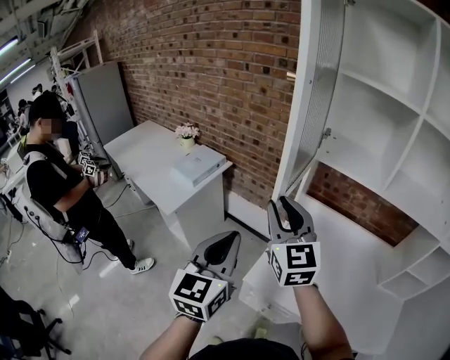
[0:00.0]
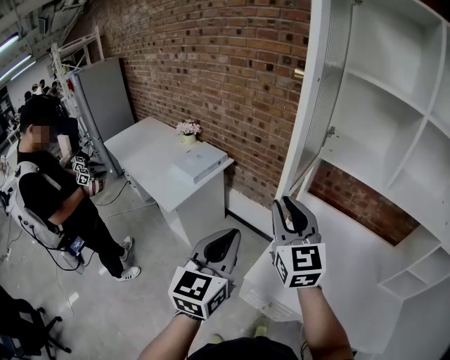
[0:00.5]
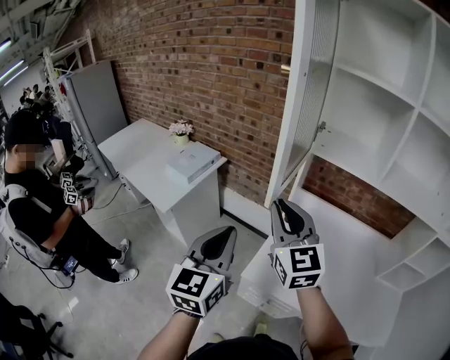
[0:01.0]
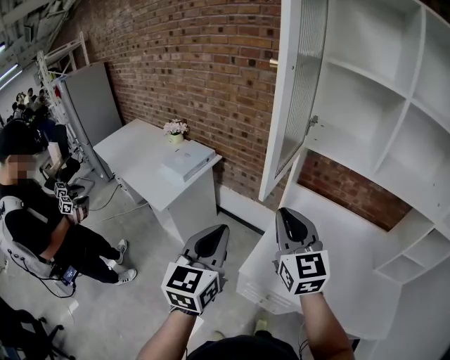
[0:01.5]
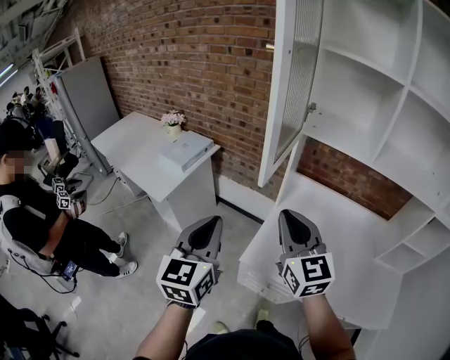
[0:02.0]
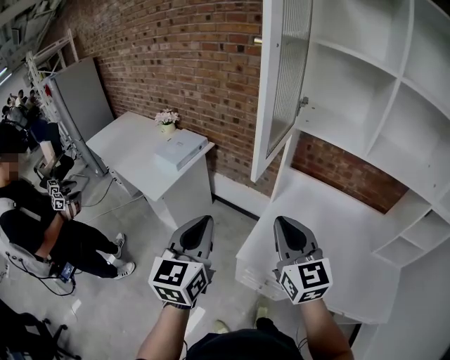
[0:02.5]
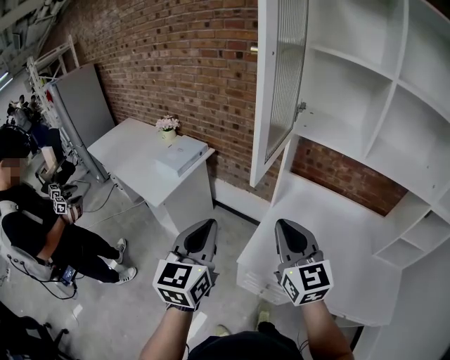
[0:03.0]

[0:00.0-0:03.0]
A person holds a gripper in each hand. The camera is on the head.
0:00.0 to 0:01.5: The right gripper moves about 5 cm.
0:01.5 to 0:03.0: The right gripper is displaced backward by about 5 cm.

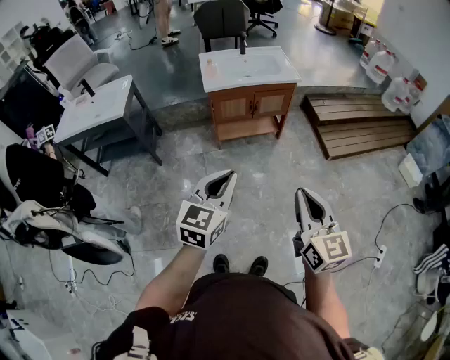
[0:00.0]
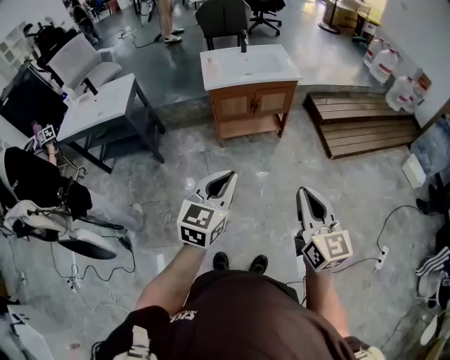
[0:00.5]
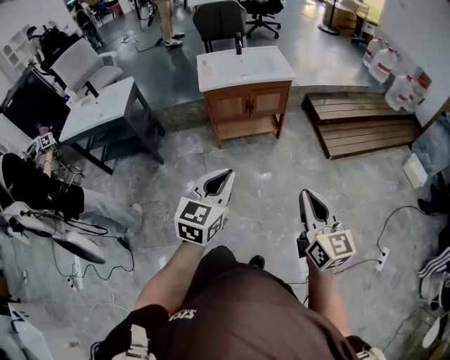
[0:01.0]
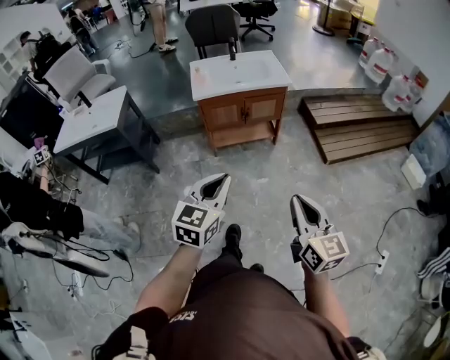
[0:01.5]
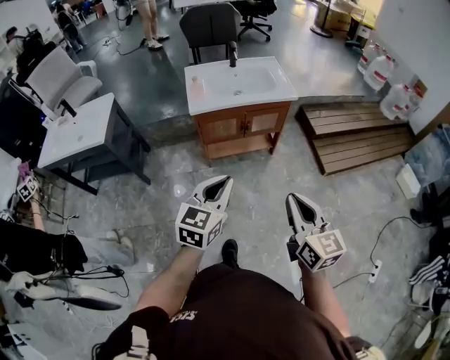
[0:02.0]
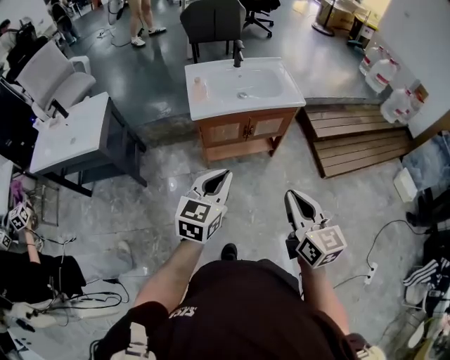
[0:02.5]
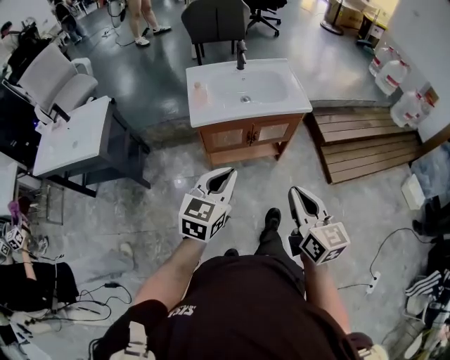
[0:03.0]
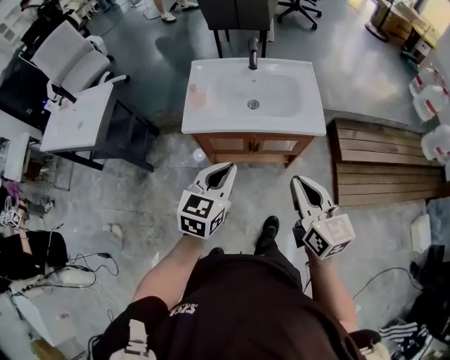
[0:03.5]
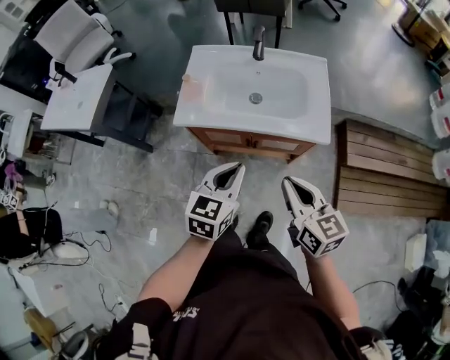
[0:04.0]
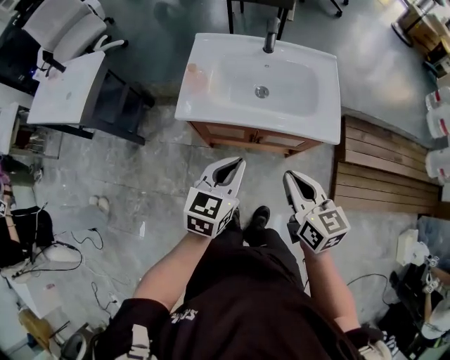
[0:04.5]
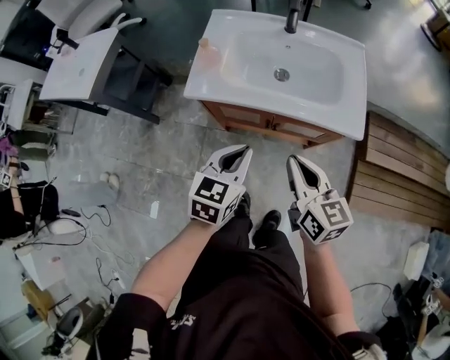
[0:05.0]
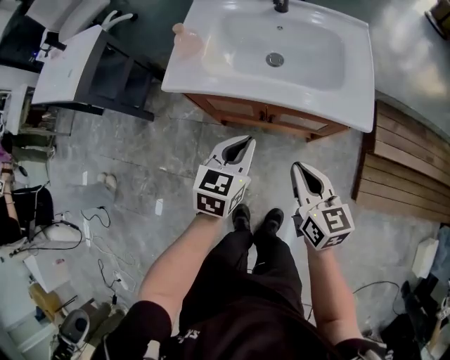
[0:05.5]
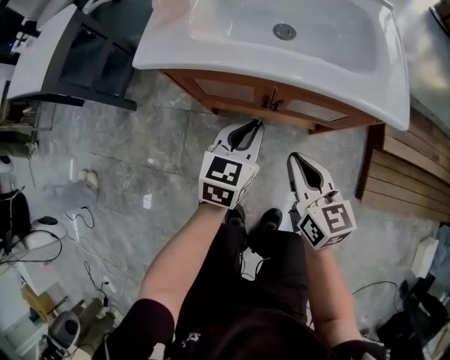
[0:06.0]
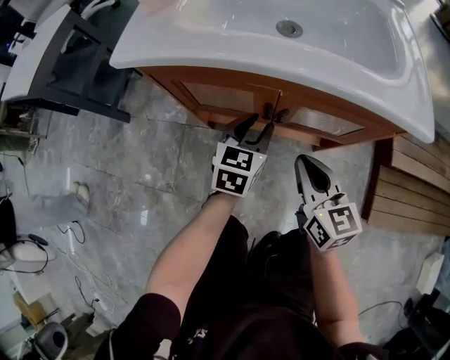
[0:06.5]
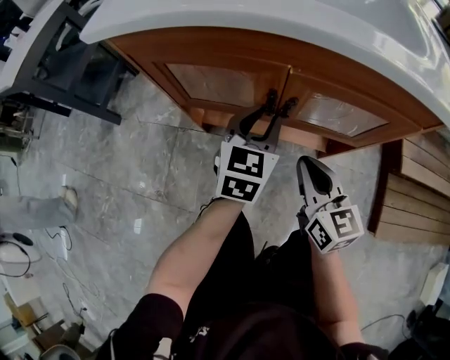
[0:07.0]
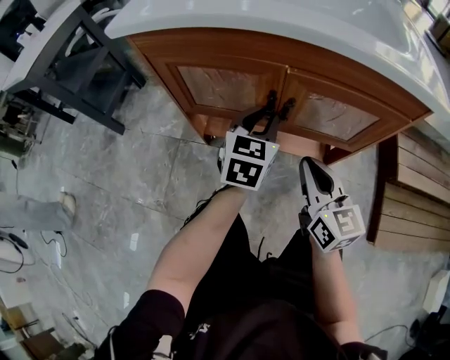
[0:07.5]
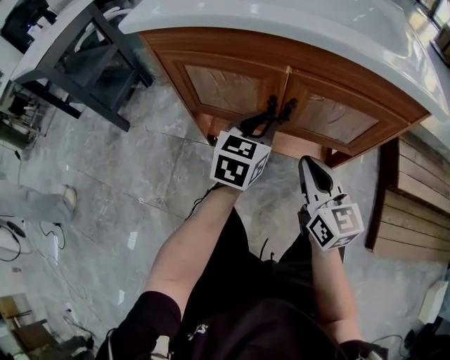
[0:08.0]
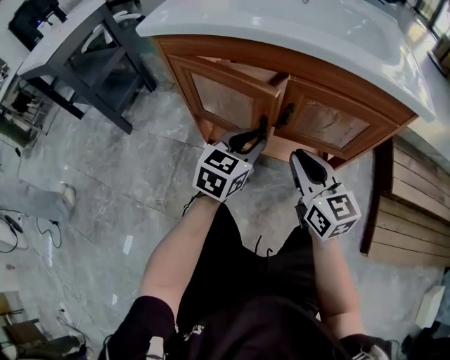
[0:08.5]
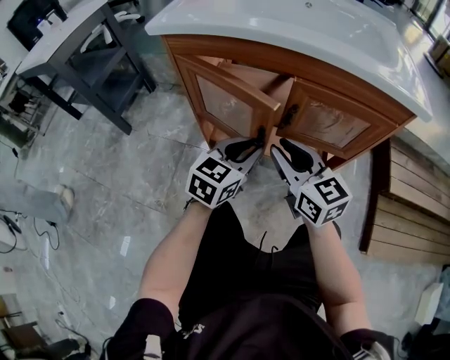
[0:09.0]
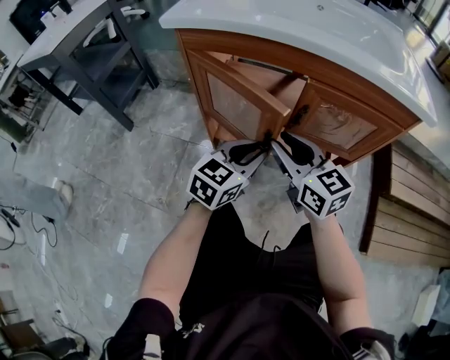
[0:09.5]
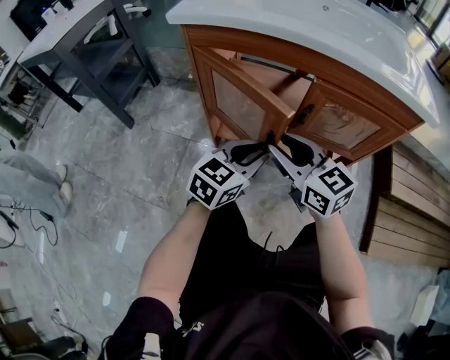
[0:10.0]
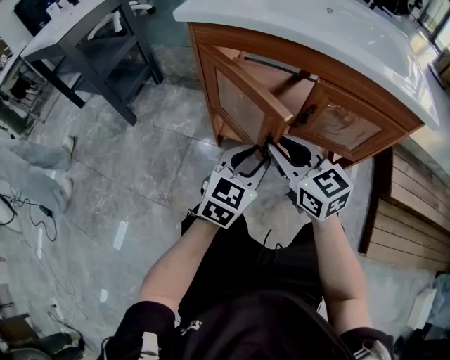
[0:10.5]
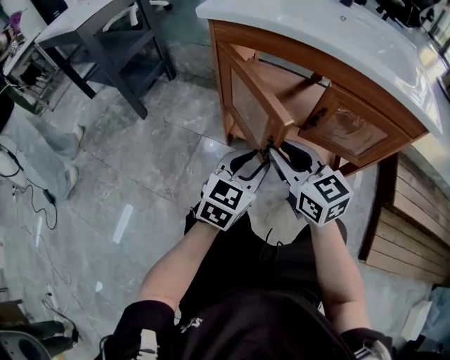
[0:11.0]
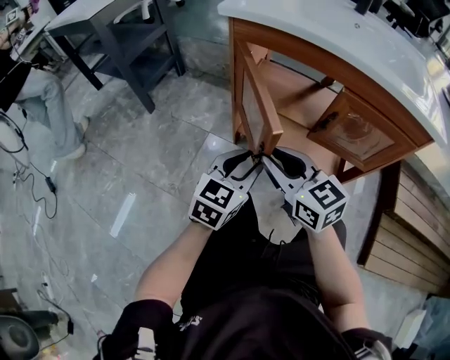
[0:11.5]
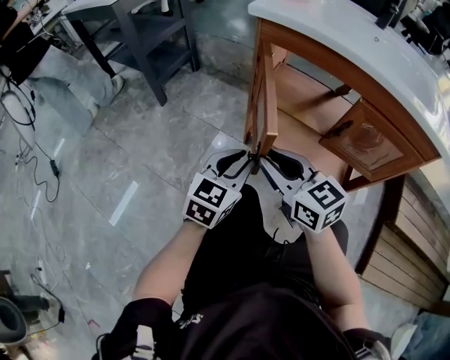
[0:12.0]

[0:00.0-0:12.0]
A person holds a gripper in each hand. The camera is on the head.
0:00.0 to 0:02.0: Both grippers move forward, some 20 cm.
0:02.0 to 0:04.0: The two grippers travel together, forward, roughly 40 cm. The left gripper rotates approximately 20 degrees. Meanwhile the right gripper turns by approximately 30 degrees.
0:04.0 to 0:06.0: The grippers both shift downward by roughly 30 cm.
0:06.0 to 0:08.0: The two grippers go approximately 15 cm downward.
0:08.0 to 0:10.0: The left gripper shifts roughly 10 cm backward and to the left, while the right gripper is displaced to the left by approximately 15 cm, rotates approximately 20 degrees, and opens.
0:10.0 to 0:12.0: The left gripper shifts about 15 cm to the left, and rotates about 30 degrees. The right gripper travels to the left and backward by about 15 cm.

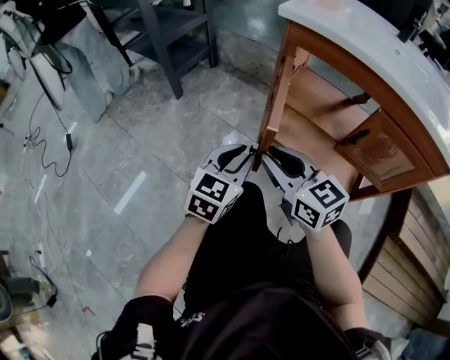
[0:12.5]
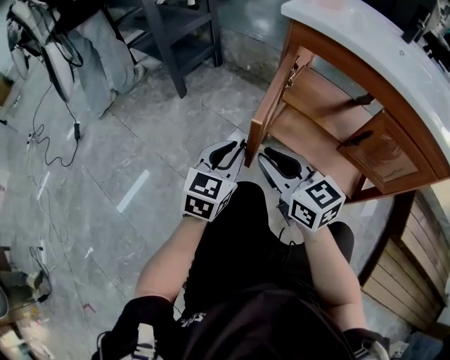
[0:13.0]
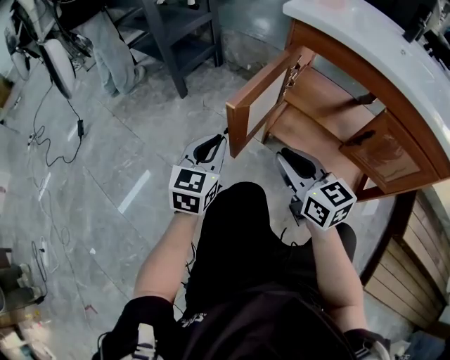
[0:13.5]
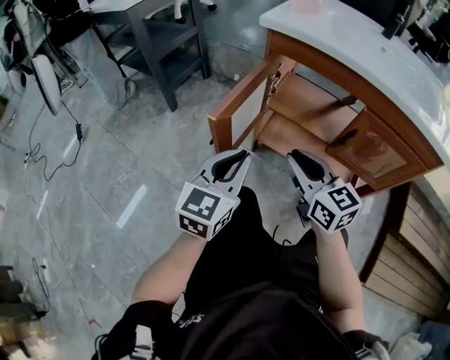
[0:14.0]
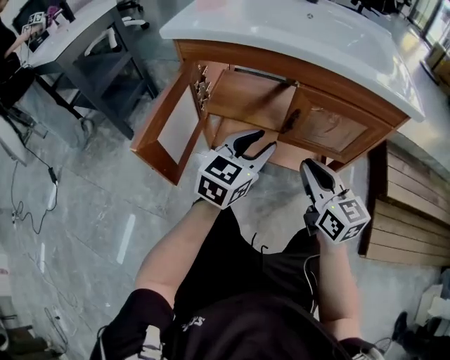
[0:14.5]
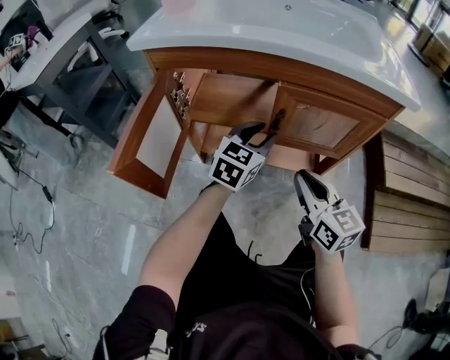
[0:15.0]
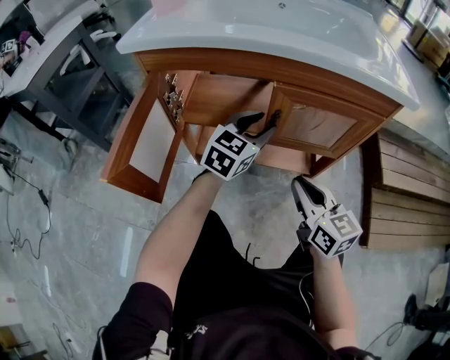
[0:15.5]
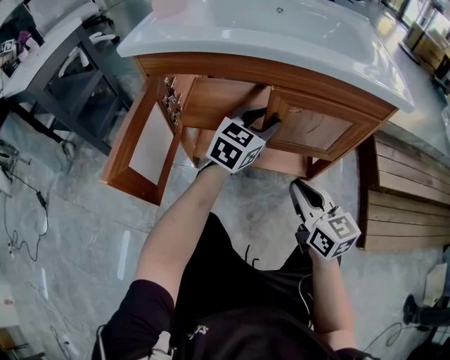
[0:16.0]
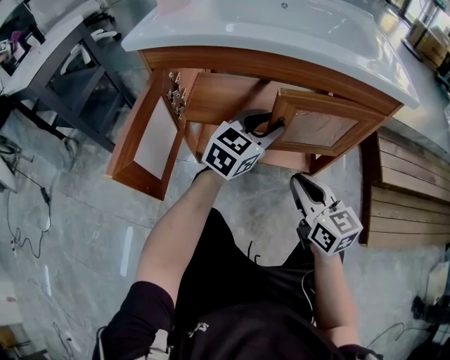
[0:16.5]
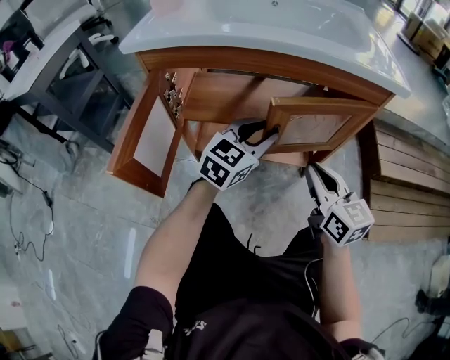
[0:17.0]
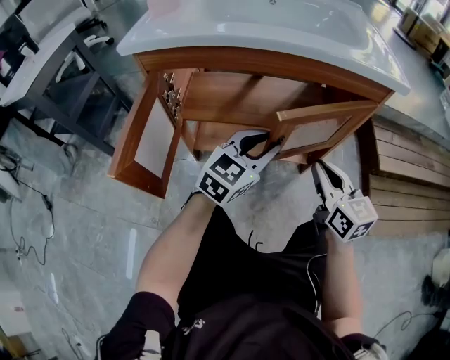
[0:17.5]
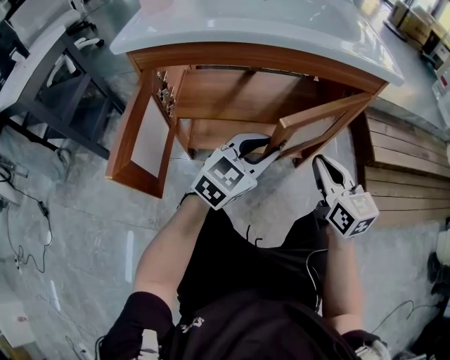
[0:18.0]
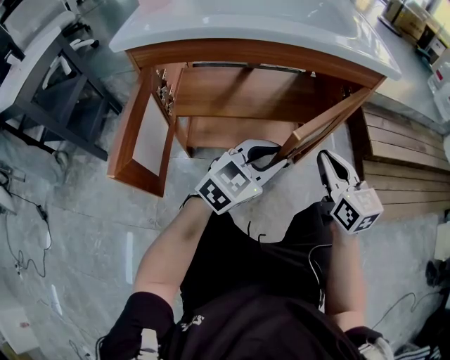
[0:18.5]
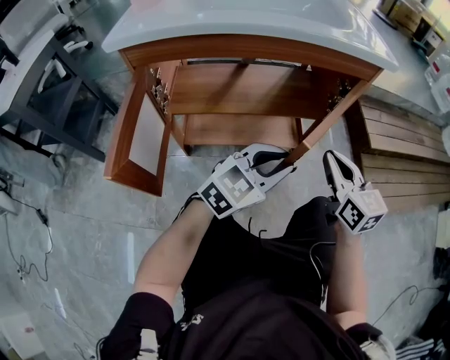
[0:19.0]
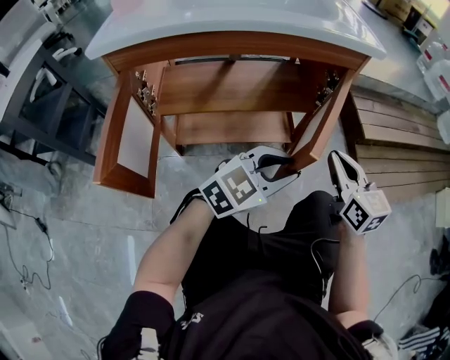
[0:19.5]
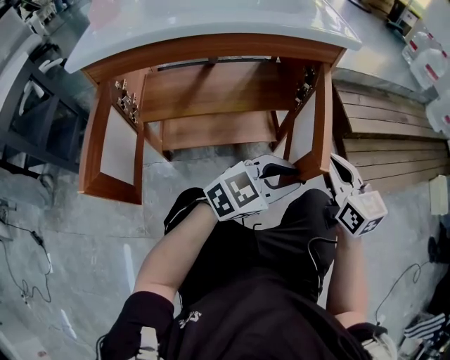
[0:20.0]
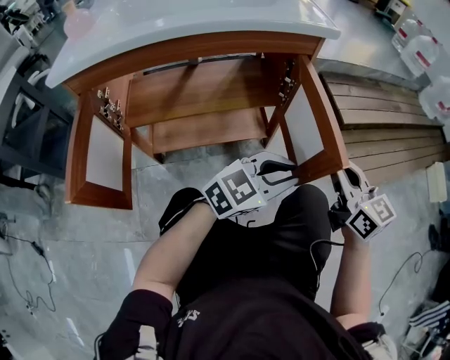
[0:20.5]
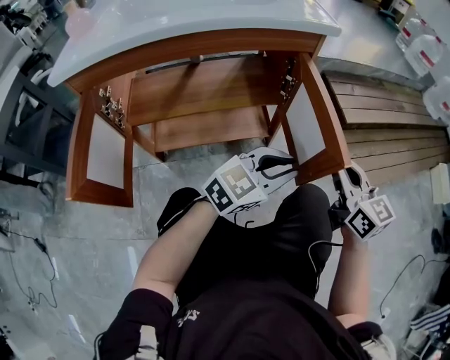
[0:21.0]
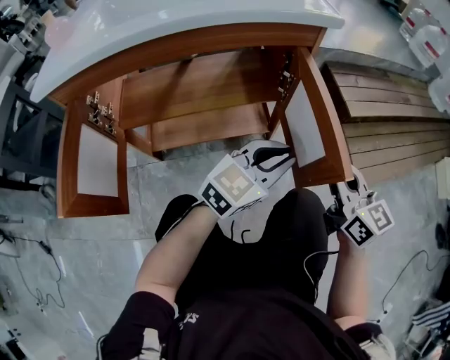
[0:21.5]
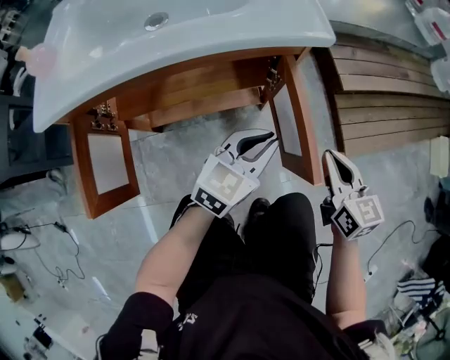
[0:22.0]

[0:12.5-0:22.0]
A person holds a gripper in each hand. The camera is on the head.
0:12.5 to 0:14.5: The left gripper shifts by roughly 25 cm, and rotates roughly 30 degrees; the right gripper moves about 25 cm, and swivels approximately 40 degrees.
0:14.5 to 0:16.5: The left gripper goes roughly 10 cm forward and to the right. The right gripper changes place by approximately 5 cm.
0:16.5 to 0:18.0: The right gripper goes some 5 cm to the right. The left gripper moves backward, some 10 cm.
0:18.0 to 0:20.0: The left gripper goes approximately 15 cm to the right, and rotates approximately 30 degrees. Meanwhile the right gripper heads to the right, covering about 10 cm.
0:20.0 to 0:22.0: The right gripper heads to the right, covering about 5 cm. The left gripper heads forward and upward, covering about 10 cm, and changes its angle by roughly 30 degrees.

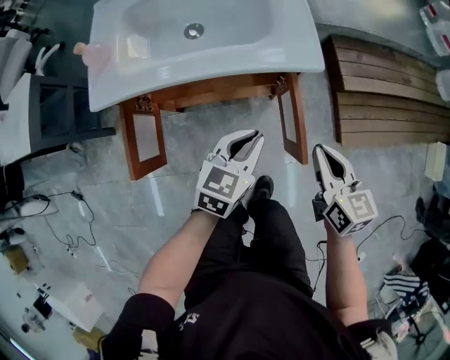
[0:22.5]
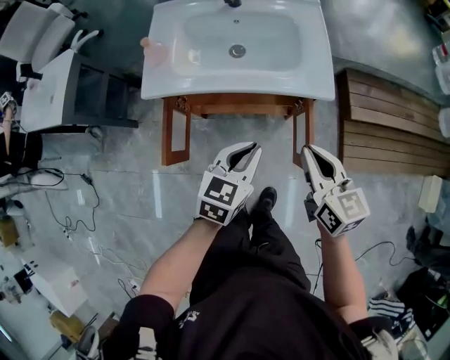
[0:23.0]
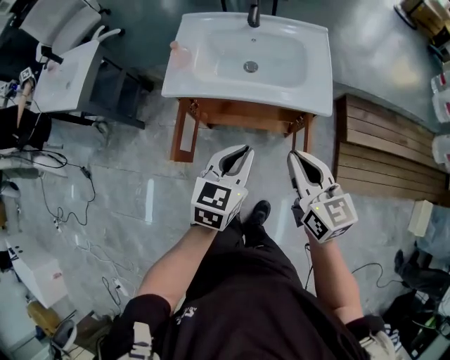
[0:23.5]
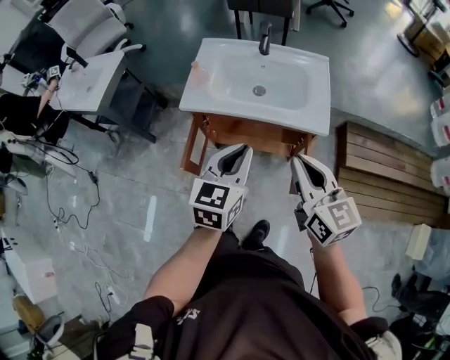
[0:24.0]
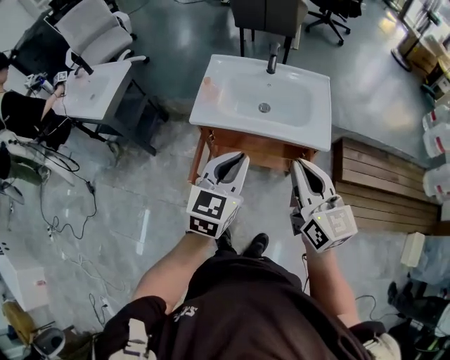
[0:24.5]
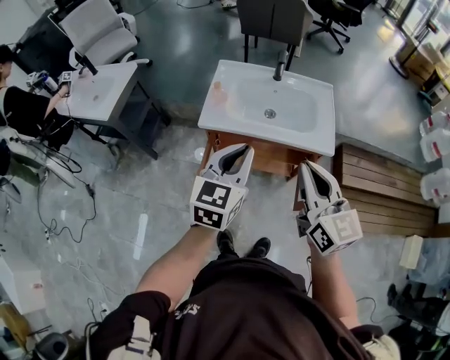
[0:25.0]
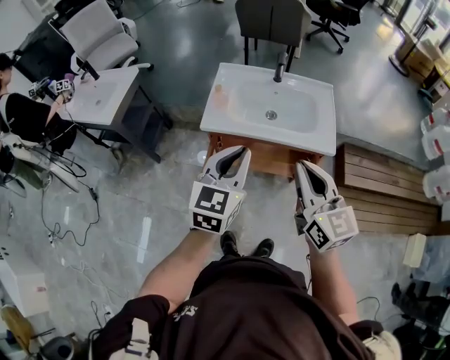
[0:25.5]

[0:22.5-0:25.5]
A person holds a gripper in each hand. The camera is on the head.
0:22.5 to 0:24.0: The grippers both shift upward and to the left by approximately 30 cm. The left gripper changes its angle by some 30 degrees. The right gripper changes its angle by roughly 30 degrees.
0:24.0 to 0:25.5: The grippers both shift to the left and upward by approximately 10 cm.
